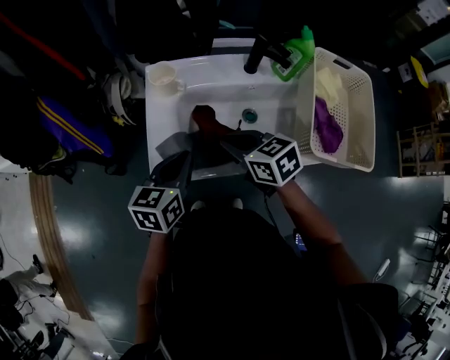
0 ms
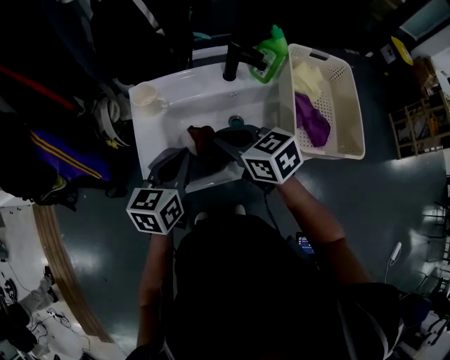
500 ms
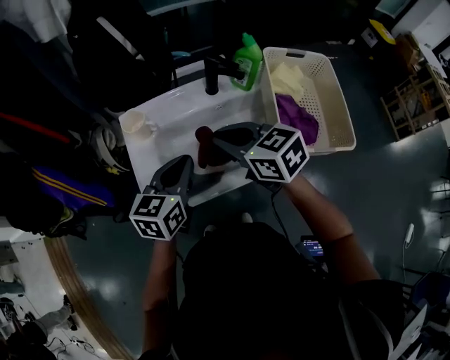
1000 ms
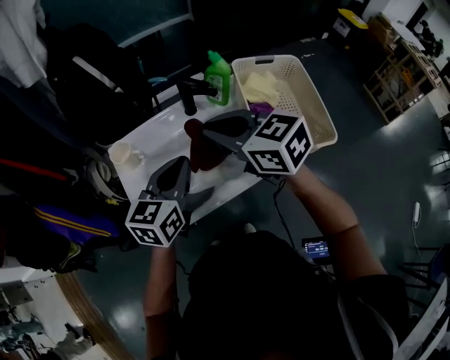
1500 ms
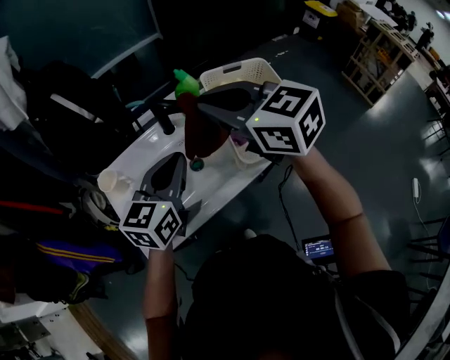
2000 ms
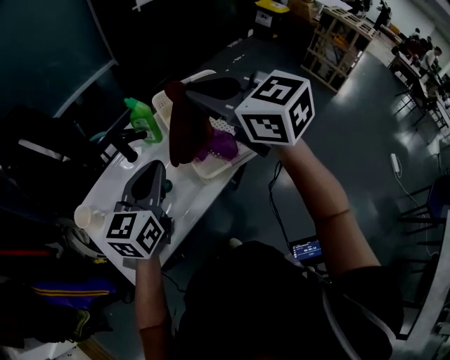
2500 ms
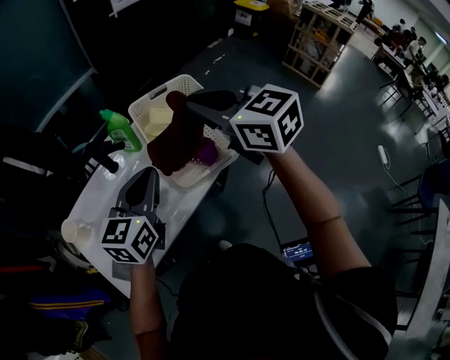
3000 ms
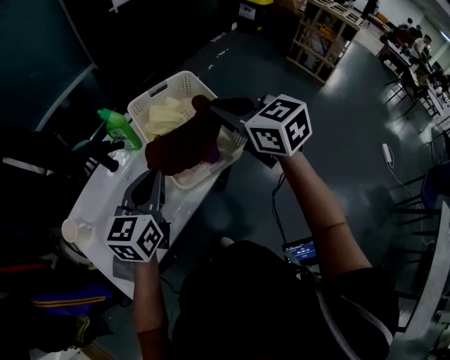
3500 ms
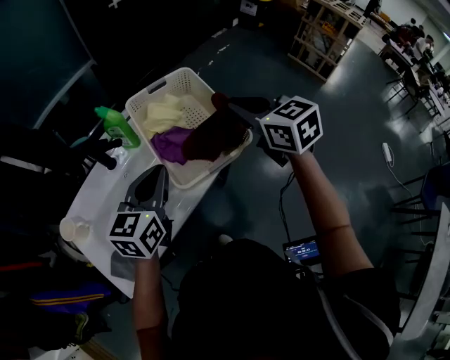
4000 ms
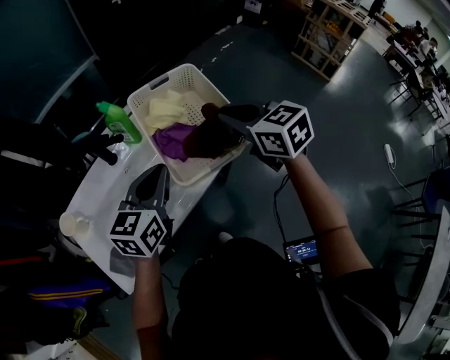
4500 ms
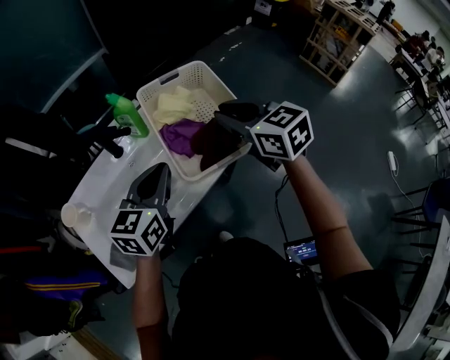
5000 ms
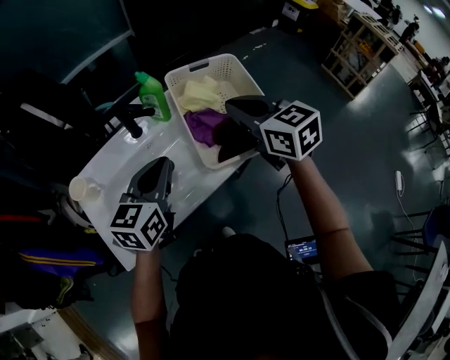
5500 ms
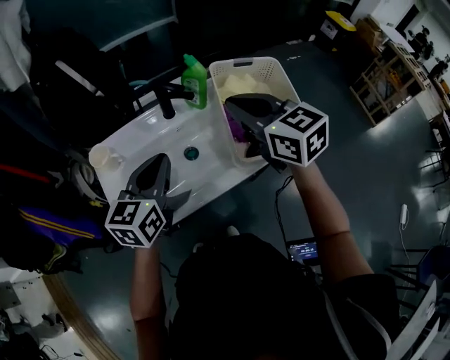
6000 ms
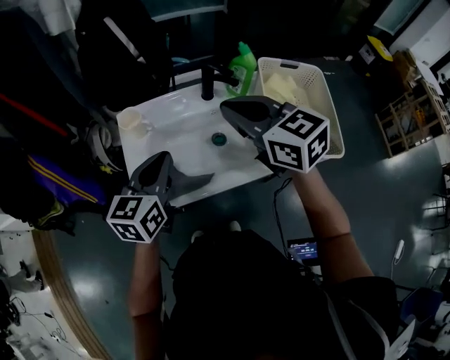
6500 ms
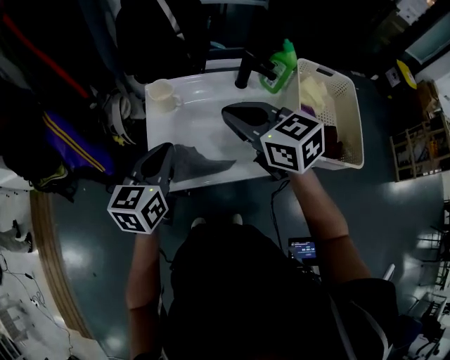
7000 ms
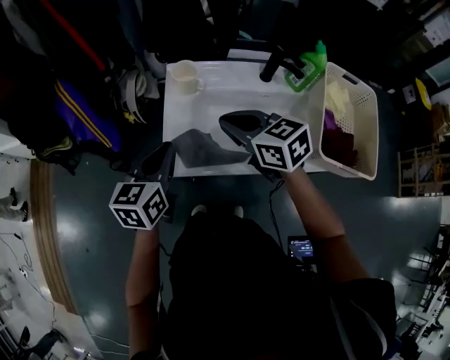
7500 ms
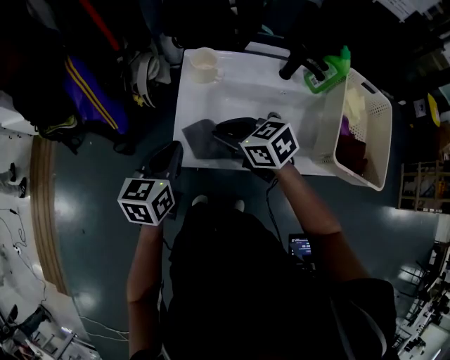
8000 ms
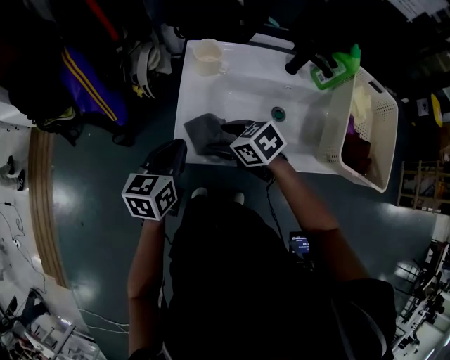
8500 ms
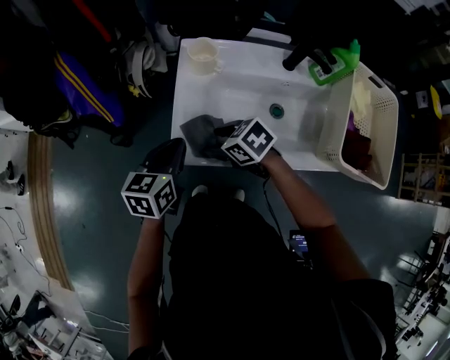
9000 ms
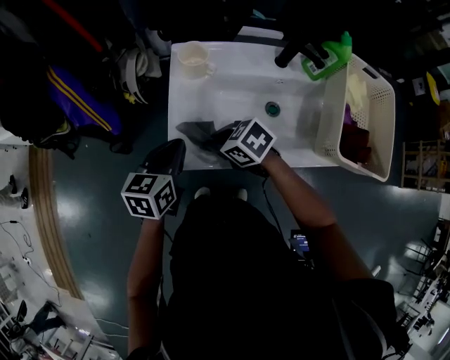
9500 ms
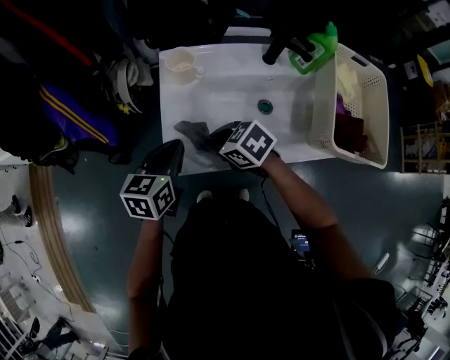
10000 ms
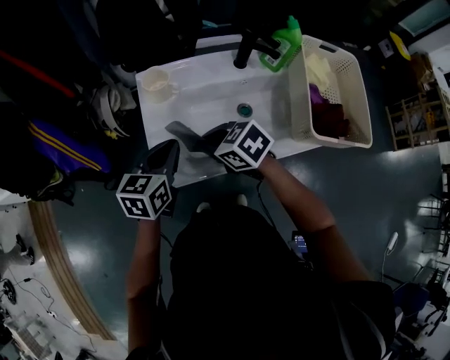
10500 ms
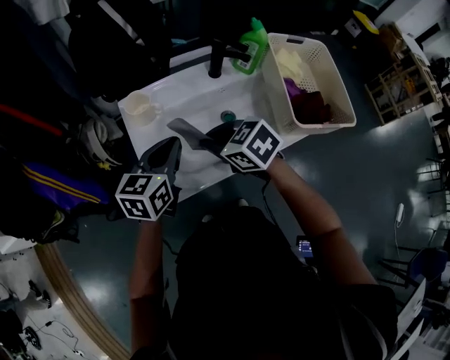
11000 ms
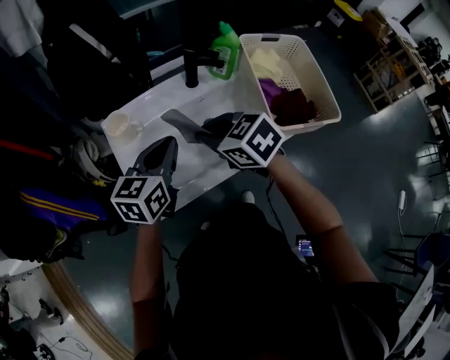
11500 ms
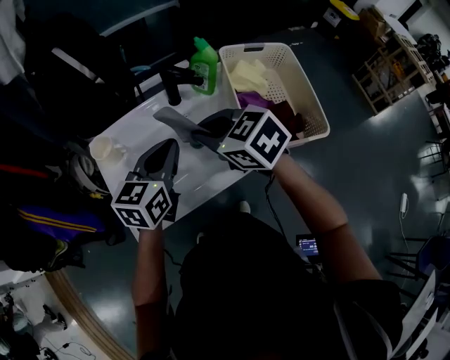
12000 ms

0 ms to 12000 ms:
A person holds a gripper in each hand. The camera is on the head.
0 ms to 2000 ms: The right gripper shifts some 25 cm upward, and rotates approximately 30 degrees, while the left gripper shifts by roughly 25 cm, and turns by roughly 30 degrees.
2000 ms to 4000 ms: The left gripper heads to the right, covering about 15 cm. The right gripper heads to the right, covering about 25 cm, and rotates roughly 30 degrees.
4000 ms to 6000 ms: The grippers both shift to the left by roughly 20 cm. The right gripper turns by approximately 20 degrees; the left gripper changes its angle by roughly 20 degrees.
6000 ms to 8000 ms: The right gripper moves about 40 cm, and swivels approximately 50 degrees. Meanwhile the left gripper changes place by approximately 30 cm, and changes its angle by roughly 30 degrees.
8000 ms to 10000 ms: The right gripper shifts some 5 cm downward, and opens, then closes again, while the left gripper ends up about 5 cm from where it was.
10000 ms to 12000 ms: The right gripper moves about 30 cm, and rotates some 30 degrees. Meanwhile the left gripper shifts by roughly 25 cm, and changes its angle by about 30 degrees.

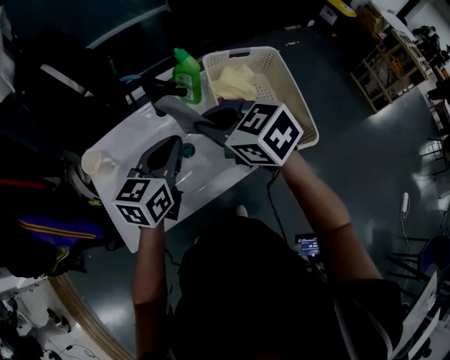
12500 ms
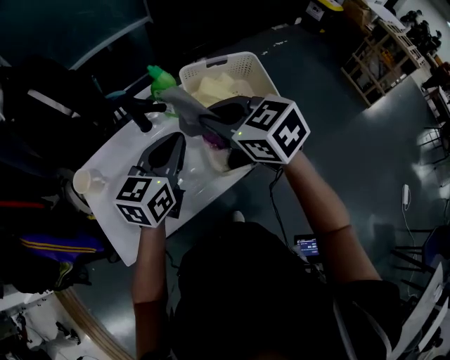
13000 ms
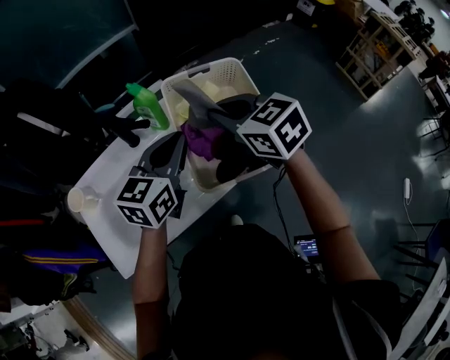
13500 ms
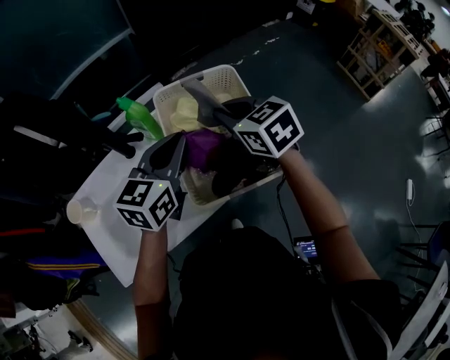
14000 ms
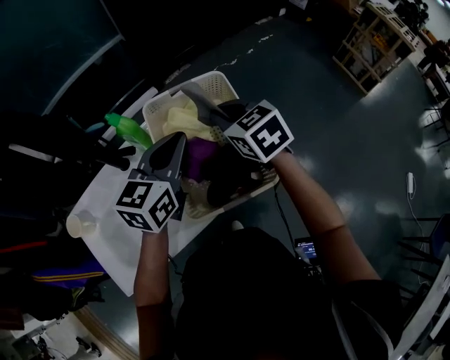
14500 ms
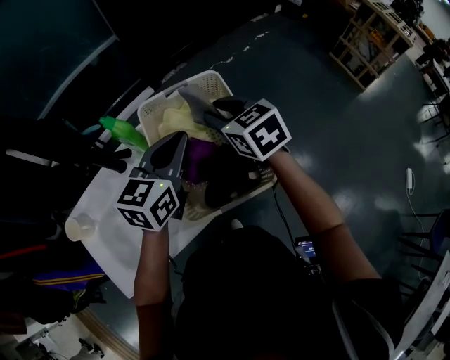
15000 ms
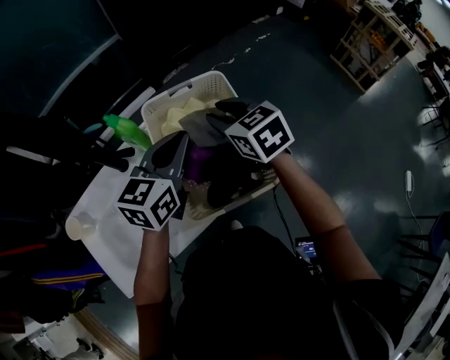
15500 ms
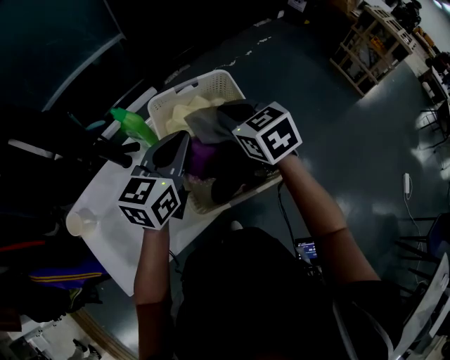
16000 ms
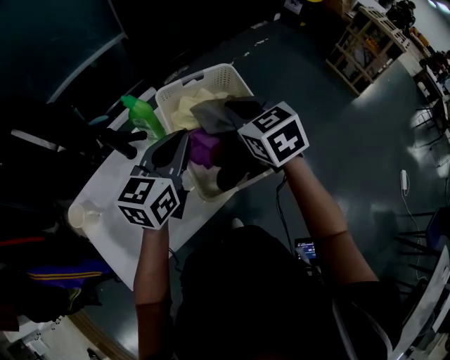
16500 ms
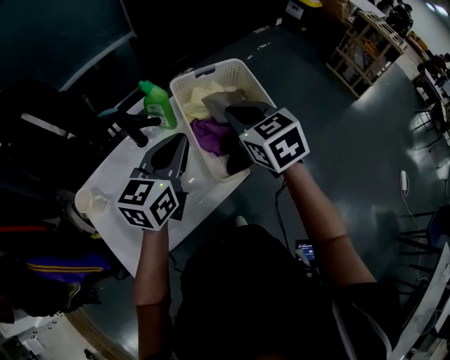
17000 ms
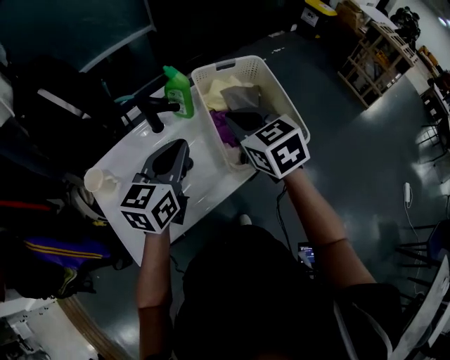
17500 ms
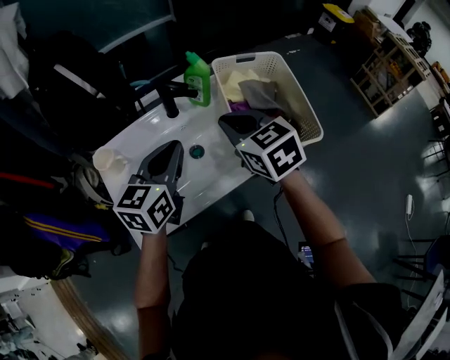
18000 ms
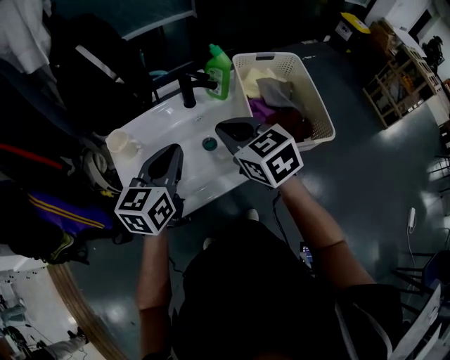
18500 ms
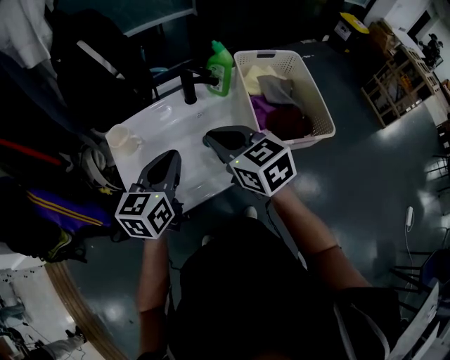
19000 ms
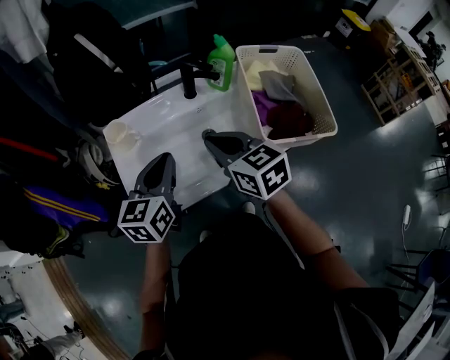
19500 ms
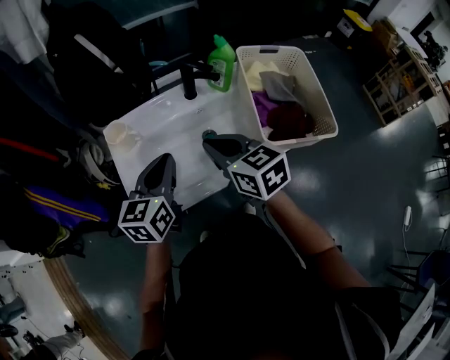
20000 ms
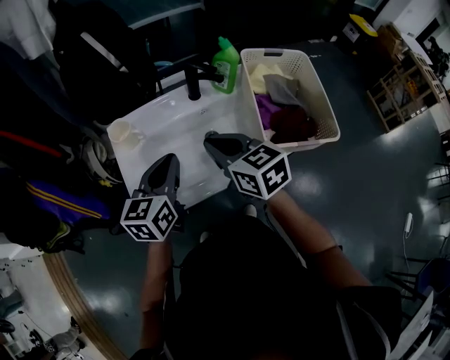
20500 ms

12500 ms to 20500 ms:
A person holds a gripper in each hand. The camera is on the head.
12500 ms to 14500 ms: Both grippers move to the right and forward, some 25 cm. The right gripper rotates about 30 degrees.
14500 ms to 16500 ms: The right gripper ends up roughly 5 cm from where it was, and opens and closes again; the left gripper moves roughly 5 cm.
16500 ms to 18500 ms: Both grippers move to the left and backward, roughly 25 cm.
18500 ms to 20500 ms: The right gripper changes place by approximately 5 cm; the left gripper moves some 5 cm.

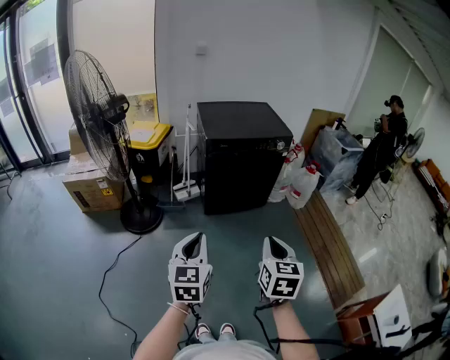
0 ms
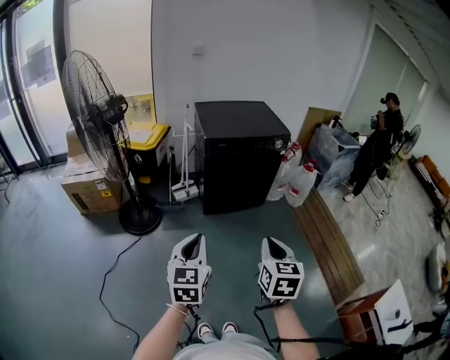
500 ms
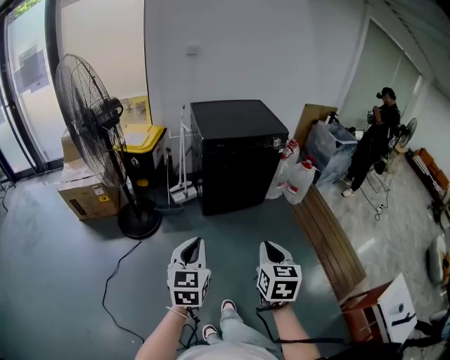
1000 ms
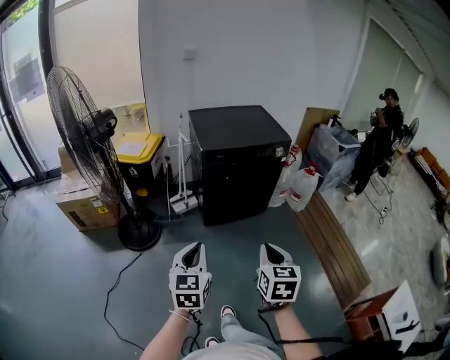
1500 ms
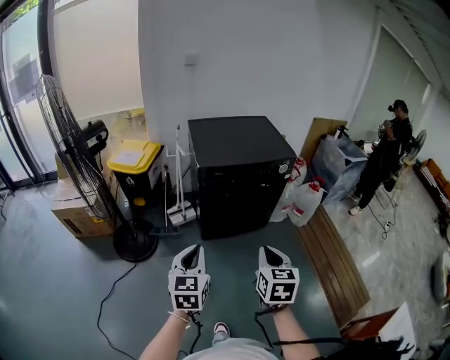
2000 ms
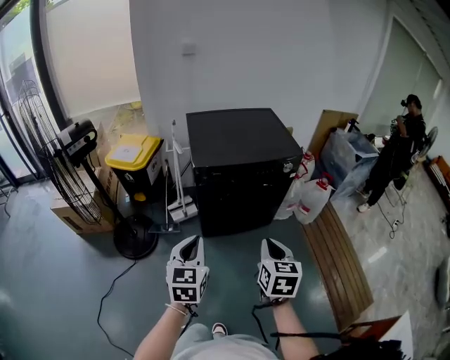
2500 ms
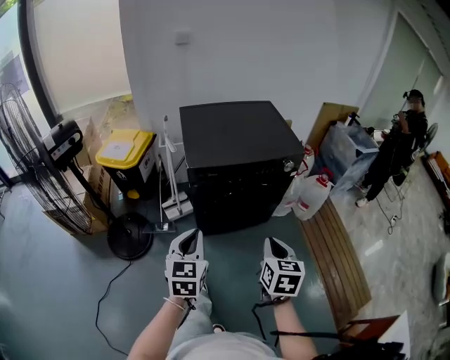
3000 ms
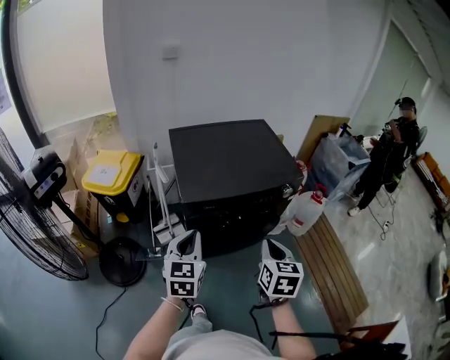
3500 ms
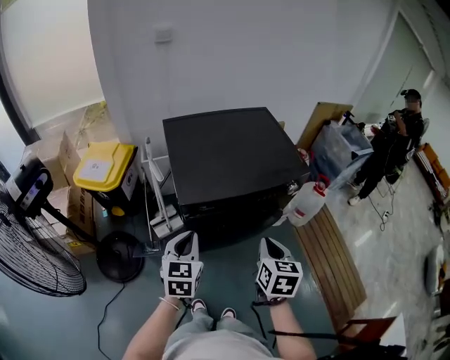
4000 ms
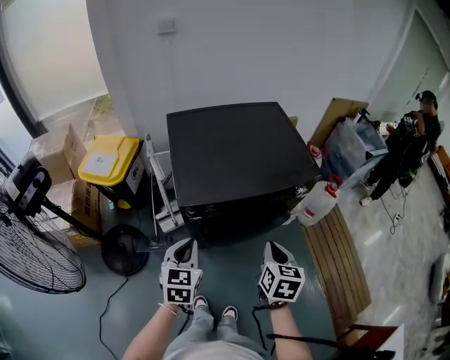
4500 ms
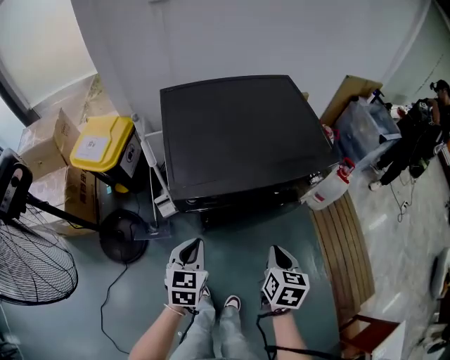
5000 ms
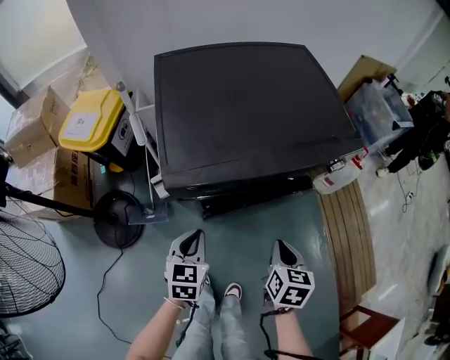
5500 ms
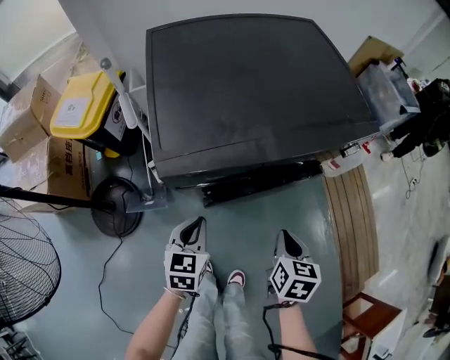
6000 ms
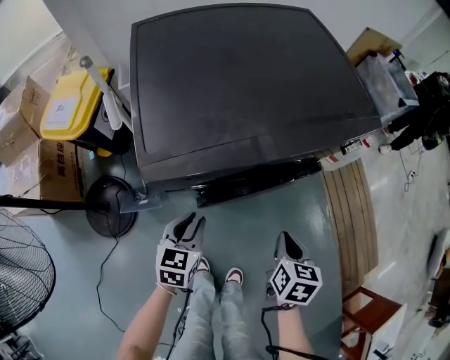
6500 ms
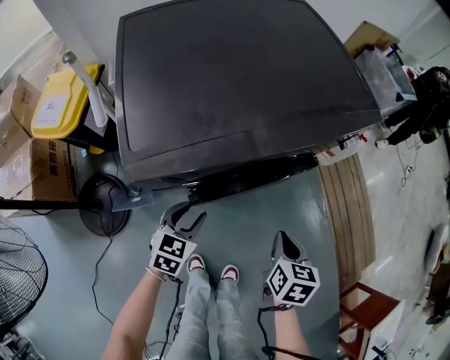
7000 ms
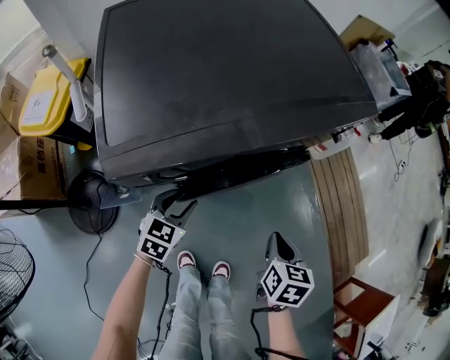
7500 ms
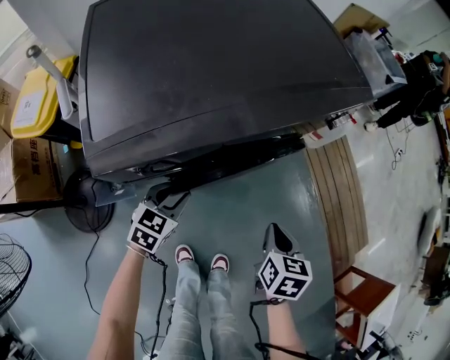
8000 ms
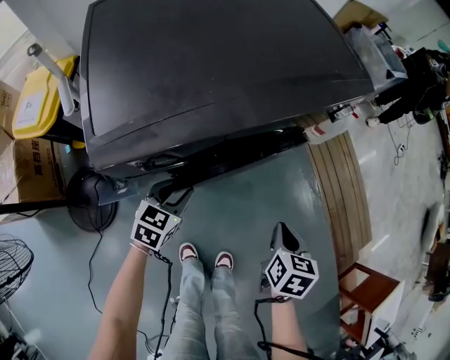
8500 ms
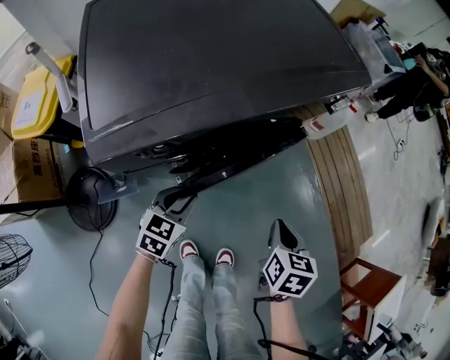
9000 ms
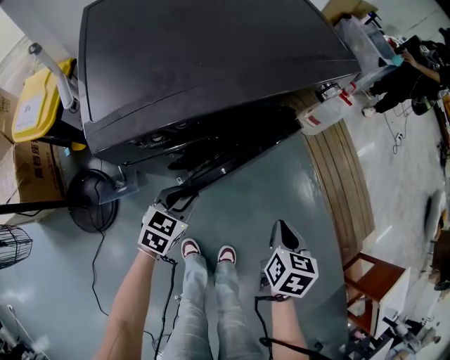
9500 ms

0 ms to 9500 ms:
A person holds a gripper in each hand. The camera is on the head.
0 ms to 2000 ms: The two grippers go approximately 20 cm forward.
2000 ms to 4000 ms: The grippers both shift forward by about 35 cm.
4000 ms to 5500 ms: The grippers both shift downward by some 20 cm.
5500 ms to 7500 ms: The right gripper heads downward and to the right, covering about 10 cm. Meanwhile the left gripper travels downward and forward by approximately 15 cm, swivels some 30 degrees, and opens.
7500 ms to 9500 ms: The left gripper heads to the right, covering roughly 5 cm, while the right gripper changes place by about 5 cm.
